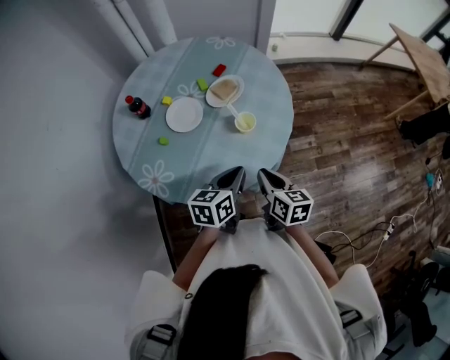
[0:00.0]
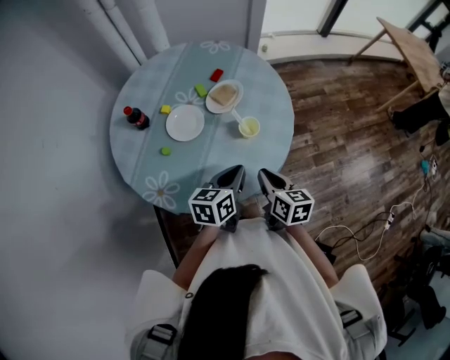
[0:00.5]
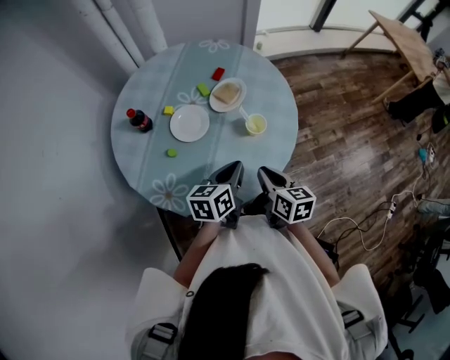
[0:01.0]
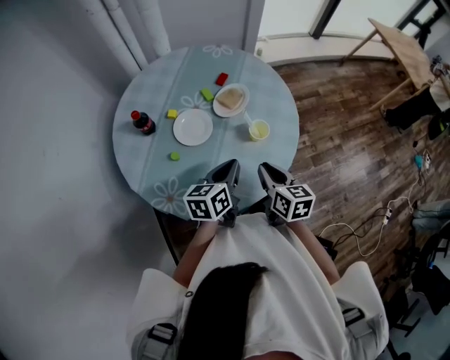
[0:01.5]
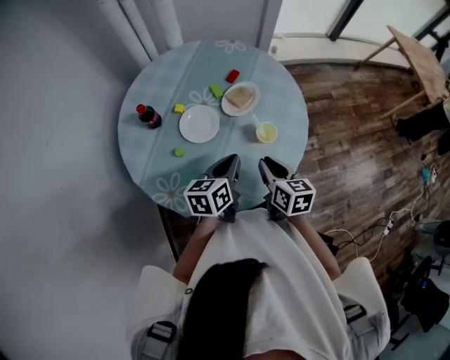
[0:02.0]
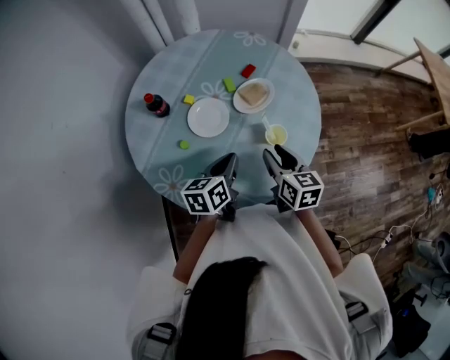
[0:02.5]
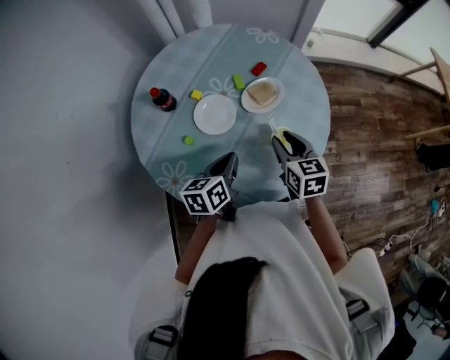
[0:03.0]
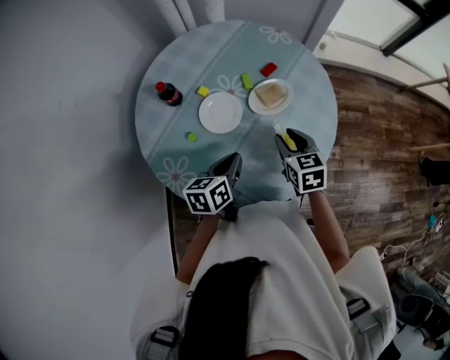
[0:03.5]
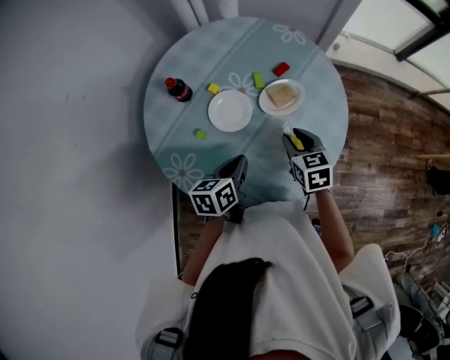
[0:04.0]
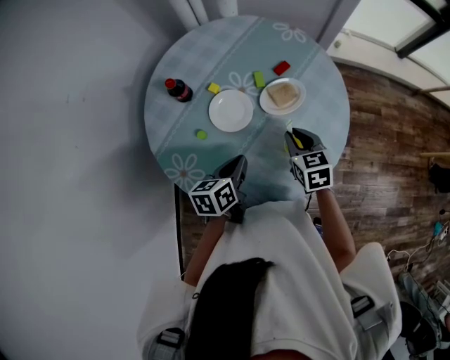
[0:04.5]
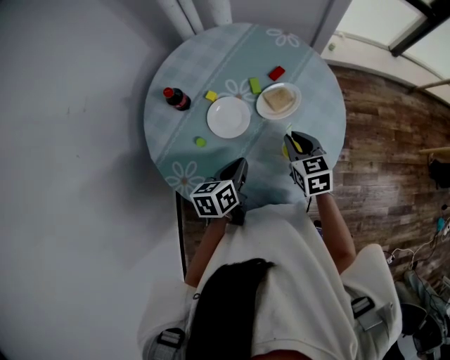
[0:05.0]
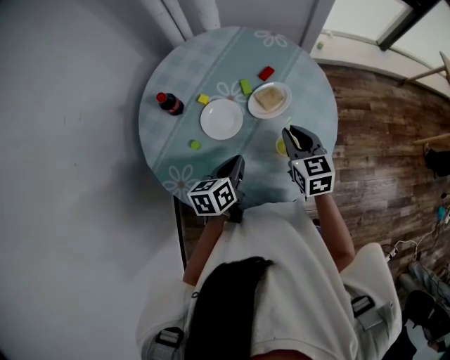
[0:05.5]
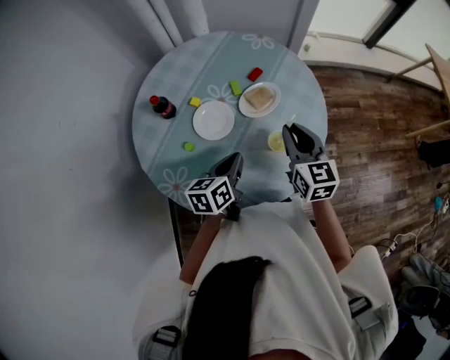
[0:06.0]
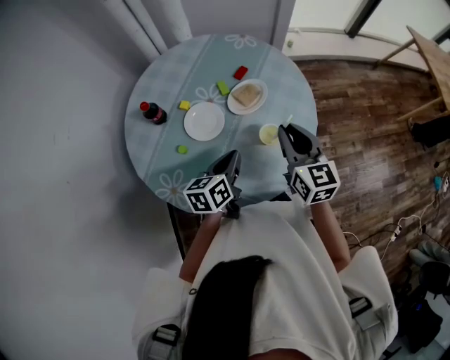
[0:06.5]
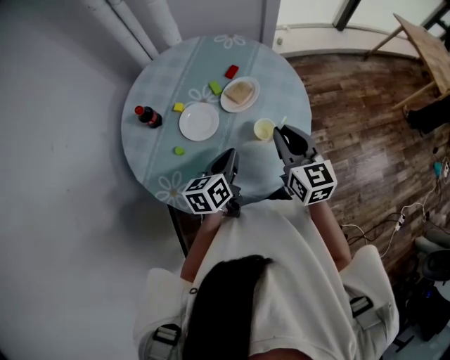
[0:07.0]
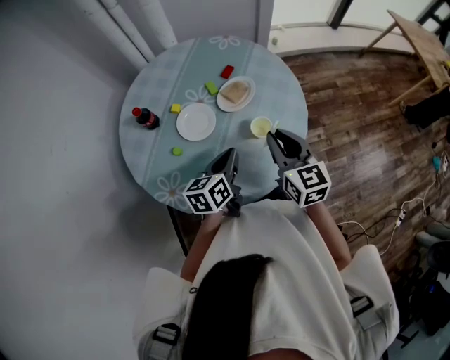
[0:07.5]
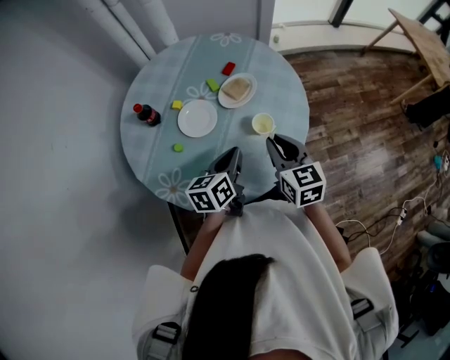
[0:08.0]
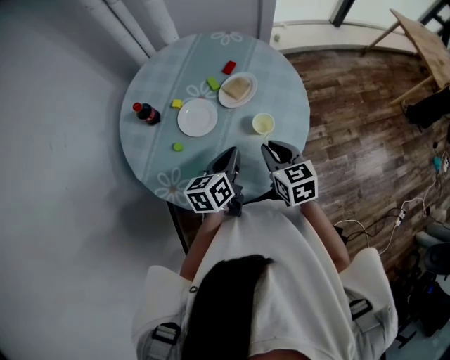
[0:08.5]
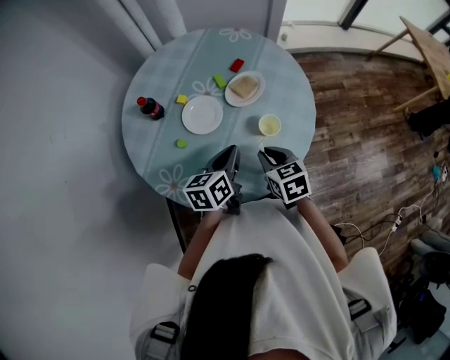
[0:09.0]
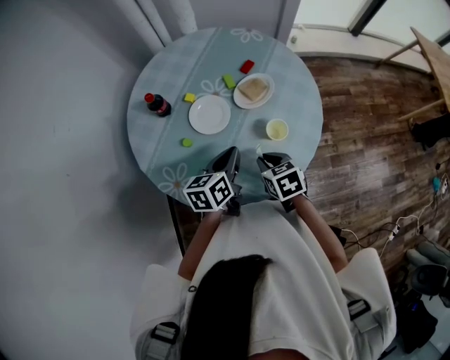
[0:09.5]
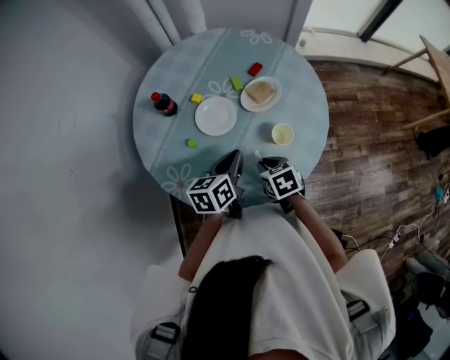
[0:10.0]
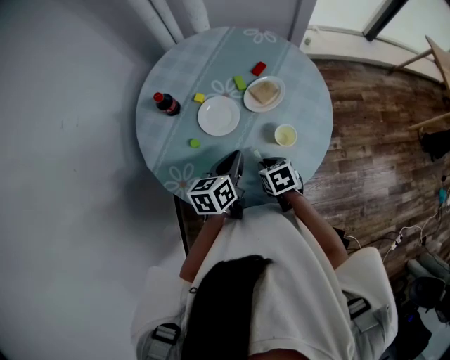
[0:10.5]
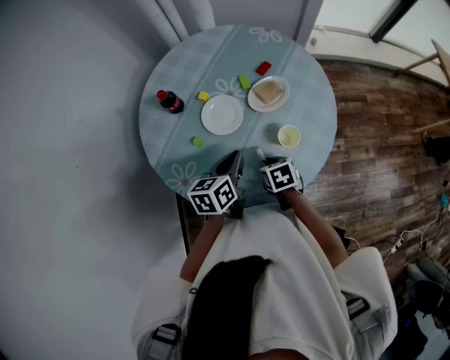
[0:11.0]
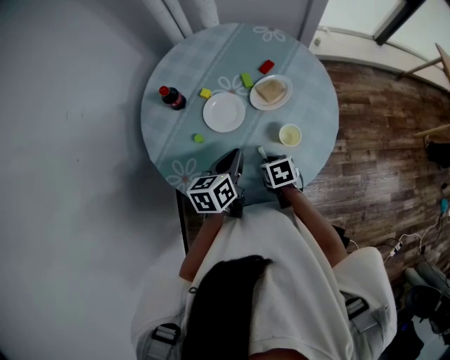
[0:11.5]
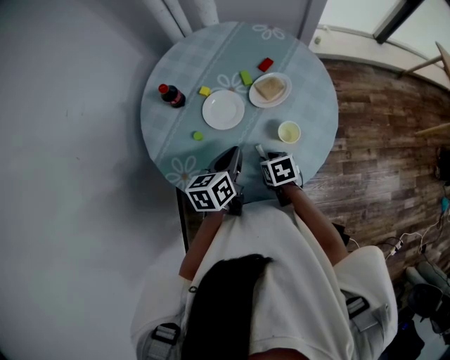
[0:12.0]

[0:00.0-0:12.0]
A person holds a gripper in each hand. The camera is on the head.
0:00.0 to 0:02.0: Both grippers travel together to the left and forward, approximately 10 cm.
0:02.0 to 0:04.0: The left gripper ends up roughly 5 cm from where it was, and rotates approximately 20 degrees; the right gripper goes about 15 cm forward, turns by some 30 degrees, and opens up.
0:04.0 to 0:06.0: The right gripper travels upward by approximately 10 cm, and changes its angle by about 30 degrees.
0:06.0 to 0:08.0: The right gripper moves backward, roughly 10 cm.
0:08.0 to 0:10.0: The left gripper ends up some 5 cm from where it was; the right gripper travels downward and to the left by about 15 cm, and points its fingers about 30 degrees further downward.
0:10.0 to 0:12.0: The grippers stay close to where they were, moving slightly.

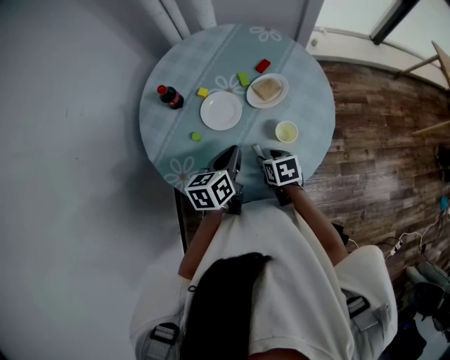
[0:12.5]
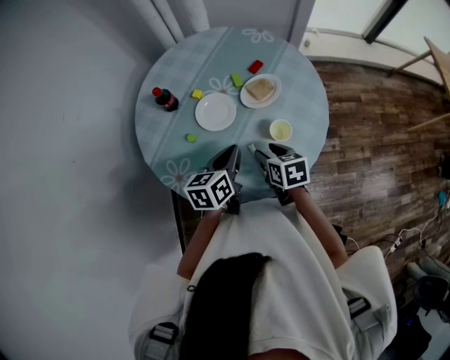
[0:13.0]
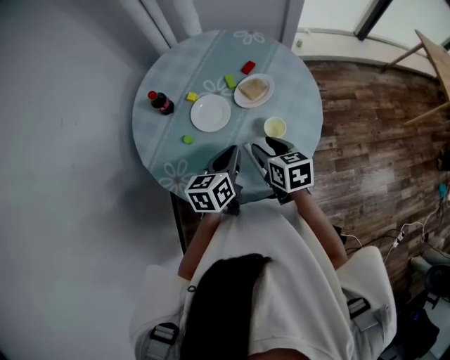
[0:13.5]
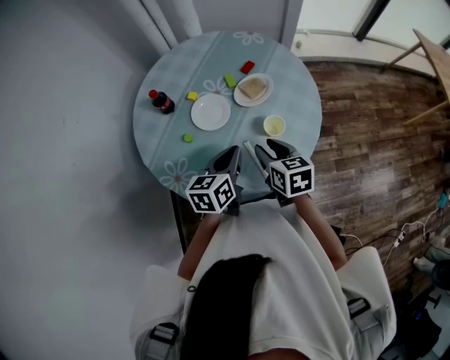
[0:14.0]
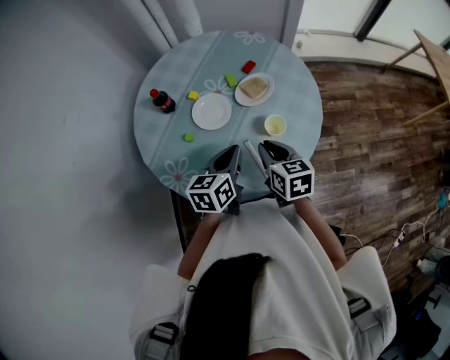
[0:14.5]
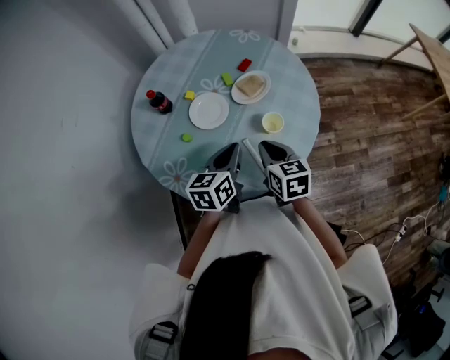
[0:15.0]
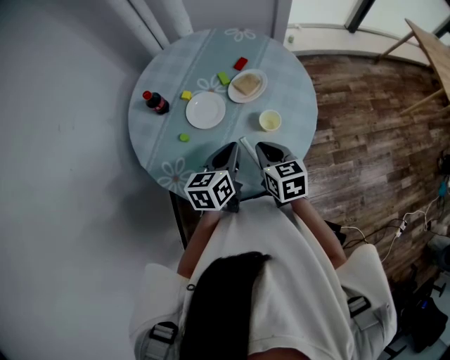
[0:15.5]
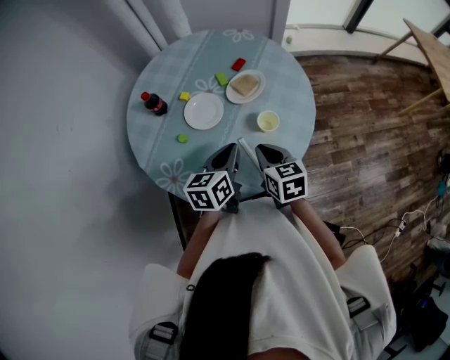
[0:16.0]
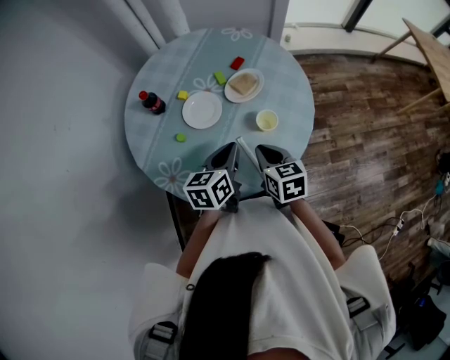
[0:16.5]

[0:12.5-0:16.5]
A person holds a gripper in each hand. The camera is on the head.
0:12.5 to 0:14.5: The right gripper is displaced upward by approximately 15 cm, rotates roughly 20 degrees, and closes.
0:14.5 to 0:16.5: There are only small adjustments of the grippers.

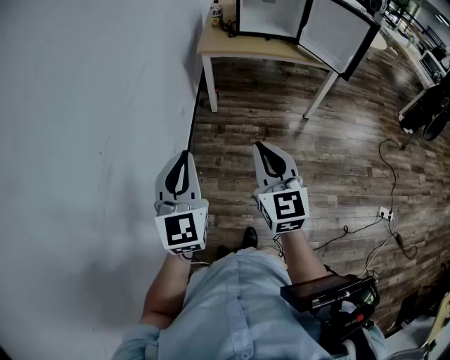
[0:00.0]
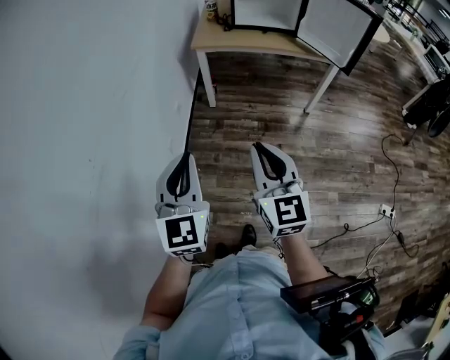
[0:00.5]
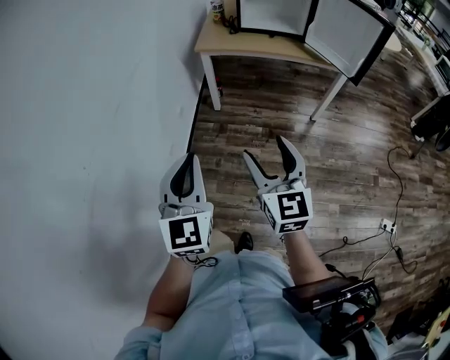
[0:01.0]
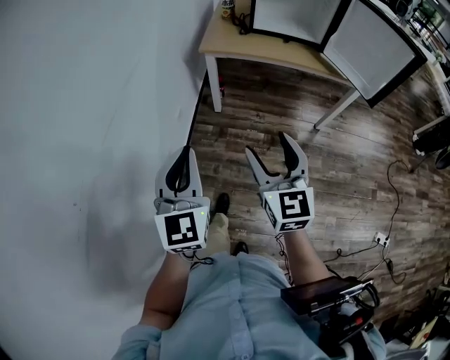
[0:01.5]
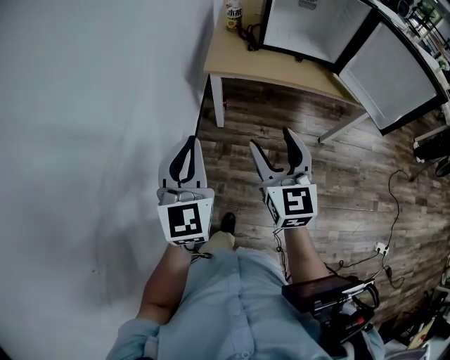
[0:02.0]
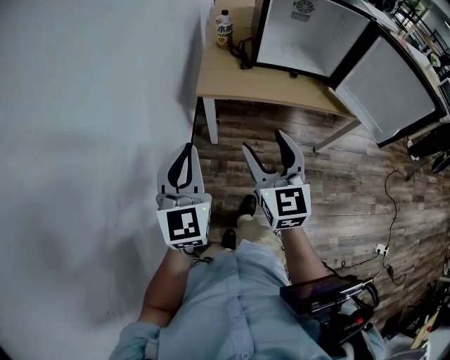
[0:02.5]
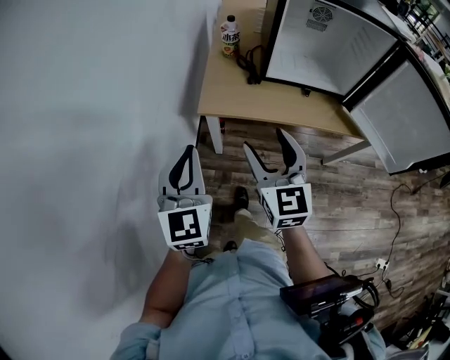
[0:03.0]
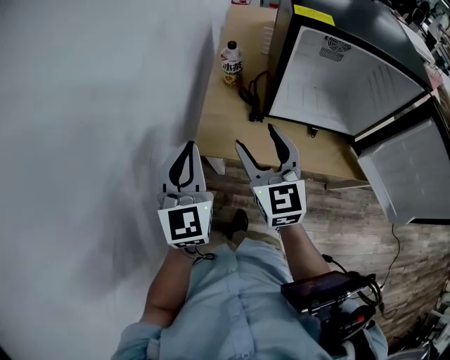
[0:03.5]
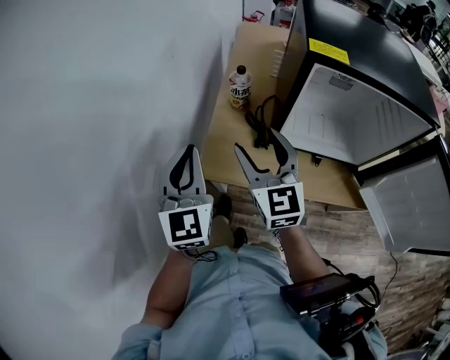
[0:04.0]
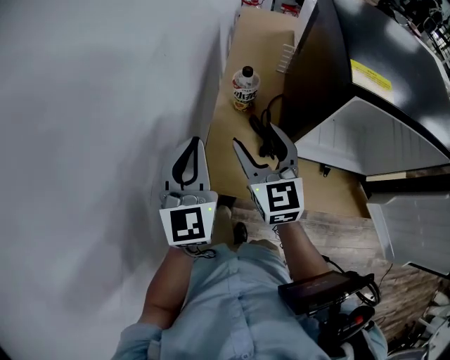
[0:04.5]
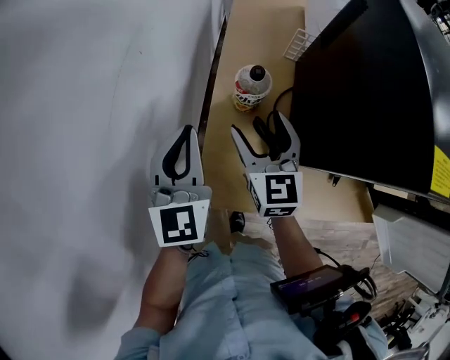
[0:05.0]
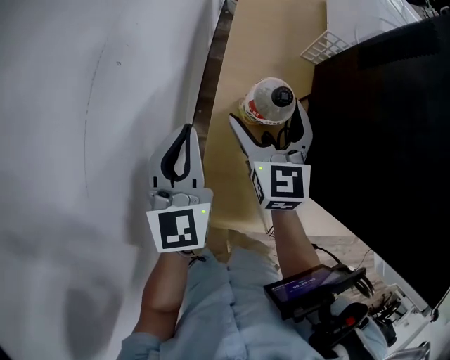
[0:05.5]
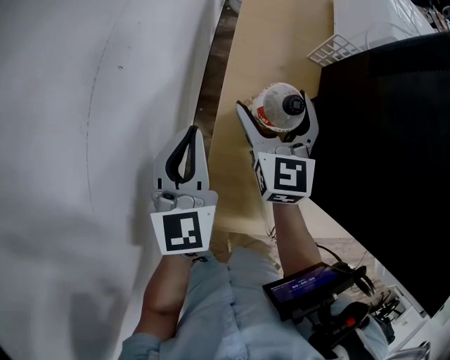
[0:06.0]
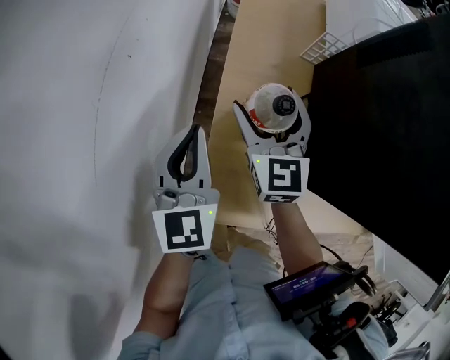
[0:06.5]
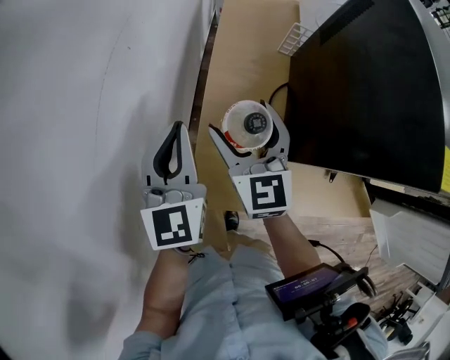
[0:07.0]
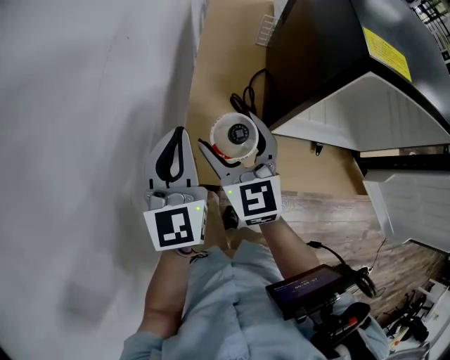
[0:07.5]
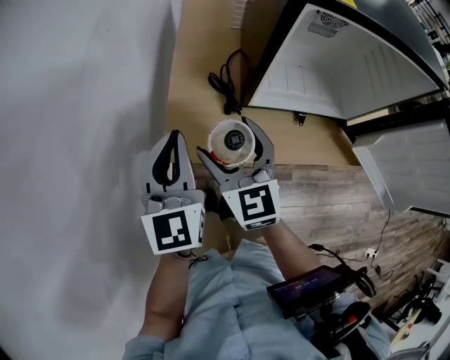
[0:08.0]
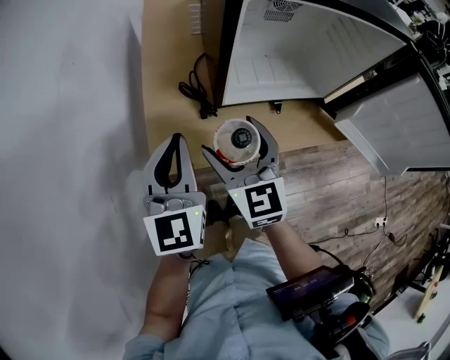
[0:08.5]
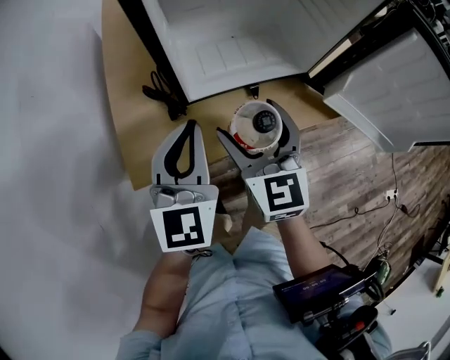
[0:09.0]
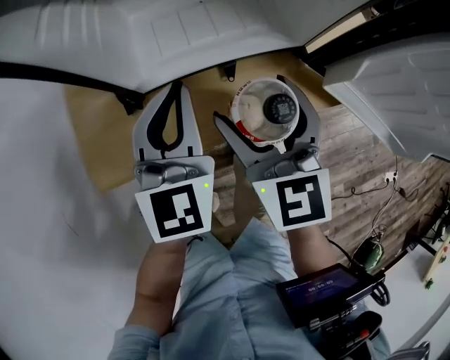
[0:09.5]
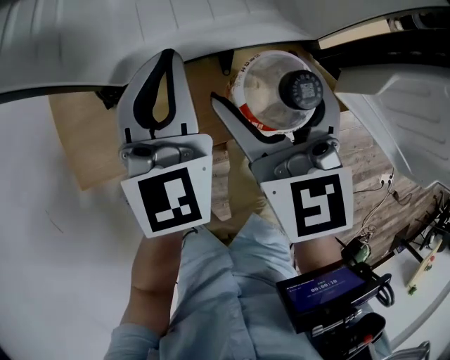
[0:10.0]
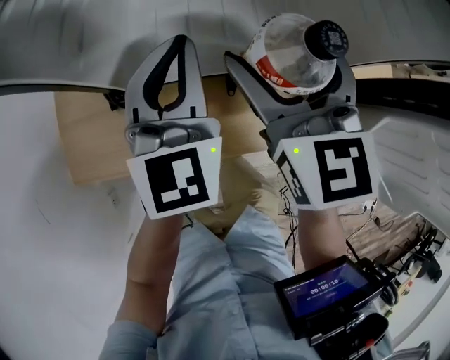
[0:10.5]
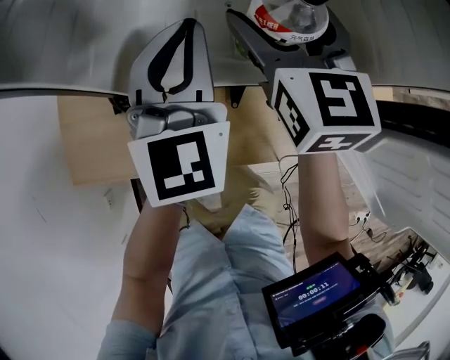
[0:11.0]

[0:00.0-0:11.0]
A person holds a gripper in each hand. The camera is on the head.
0:00.0 to 0:02.0: The pair of grippers is taken forward, roughly 40 cm. The right gripper opens.
0:02.0 to 0:03.5: Both grippers are carried forward, some 40 cm.
0:03.5 to 0:05.5: Both grippers move forward and downward, about 40 cm. The right gripper opens up.
0:05.5 to 0:07.5: The two grippers go about 25 cm backward and upward.
0:07.5 to 0:09.0: The right gripper shifts by roughly 25 cm, and swivels approximately 30 degrees. Meanwhile the left gripper moves about 25 cm, and rotates some 30 degrees.
0:09.0 to 0:11.0: The two grippers go approximately 20 cm forward and to the right.
